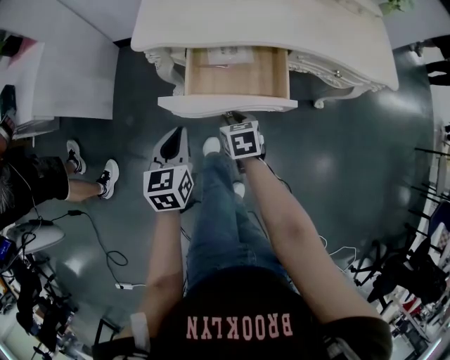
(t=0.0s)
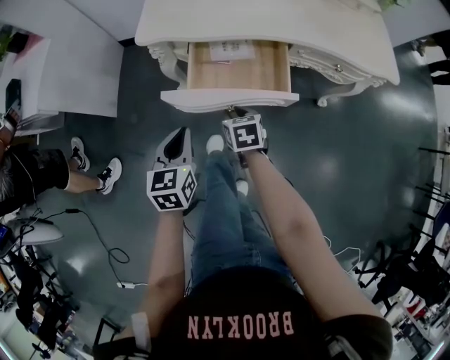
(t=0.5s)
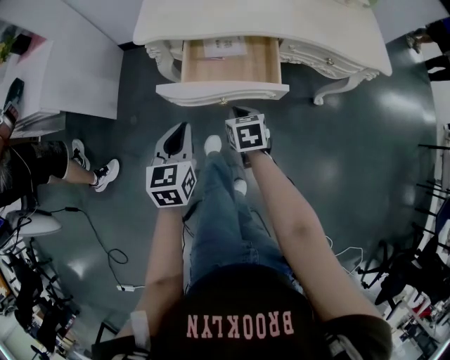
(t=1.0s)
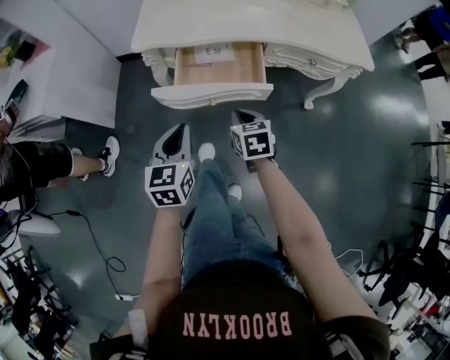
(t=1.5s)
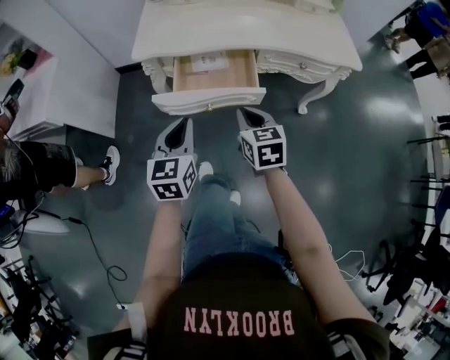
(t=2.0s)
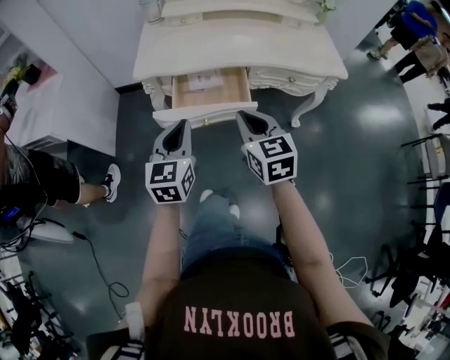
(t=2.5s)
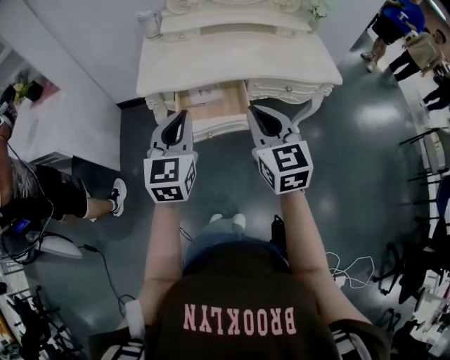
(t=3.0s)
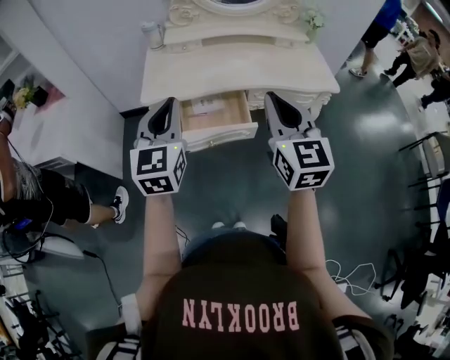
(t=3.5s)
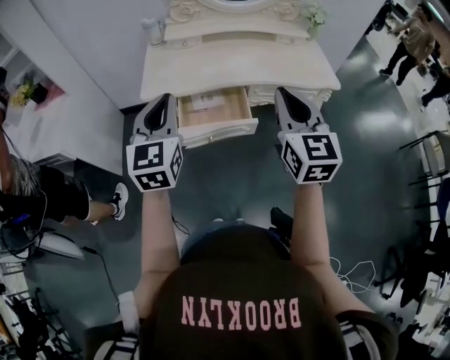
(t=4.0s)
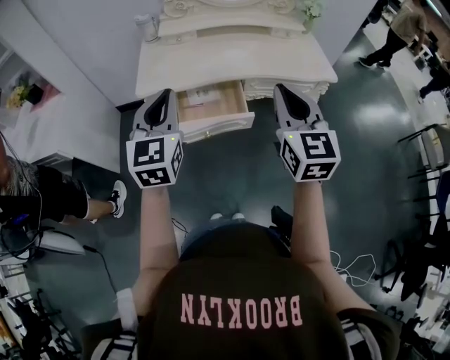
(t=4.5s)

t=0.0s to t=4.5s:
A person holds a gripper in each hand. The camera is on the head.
t=0.0s to t=2.0s: Both grippers move upward, backward and to the right, approximately 20 cm. The right gripper rotates approximately 20 degrees, and closes its fingers.
t=2.0s to t=4.5s: Both grippers move upward, roughly 25 cm. The right gripper swivels roughly 30 degrees. Meanwhile the left gripper turns by roughly 20 degrees.

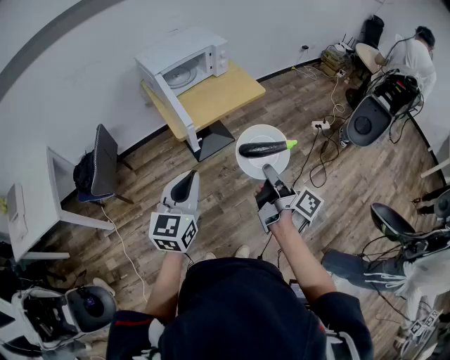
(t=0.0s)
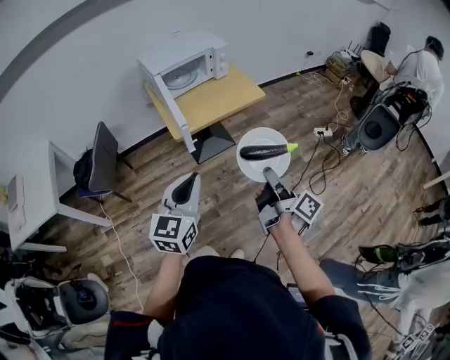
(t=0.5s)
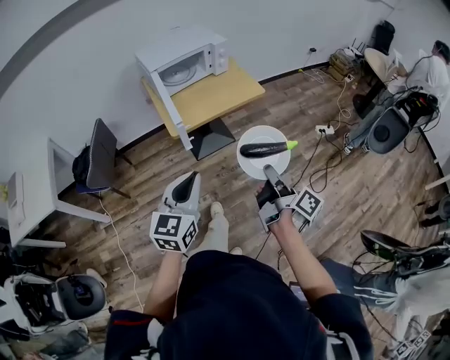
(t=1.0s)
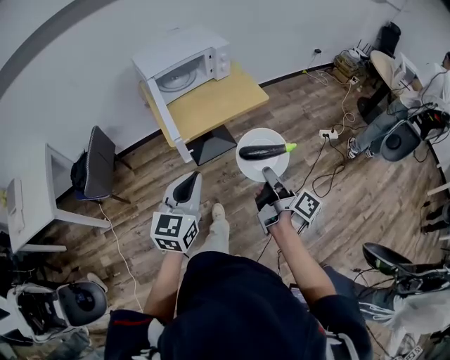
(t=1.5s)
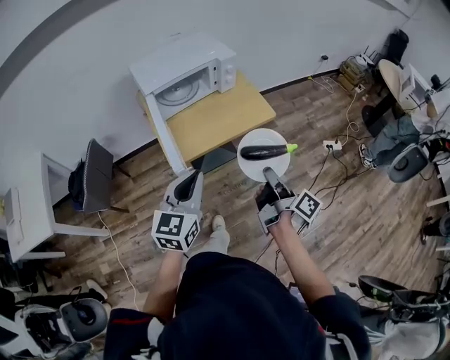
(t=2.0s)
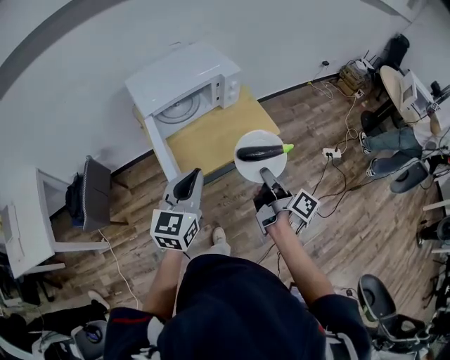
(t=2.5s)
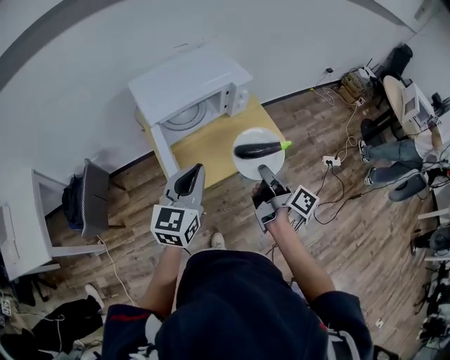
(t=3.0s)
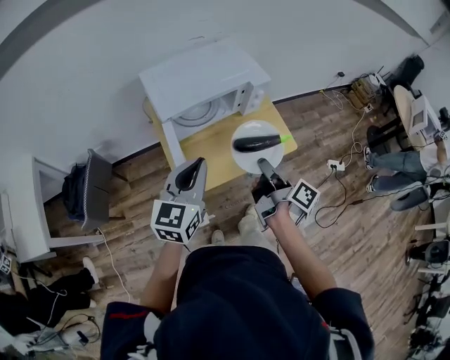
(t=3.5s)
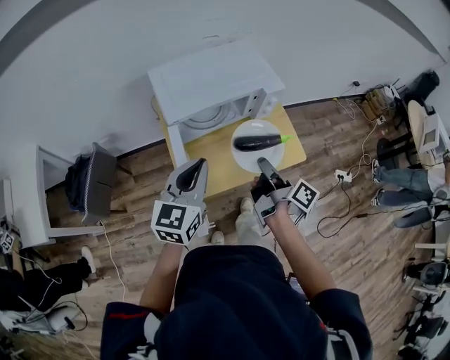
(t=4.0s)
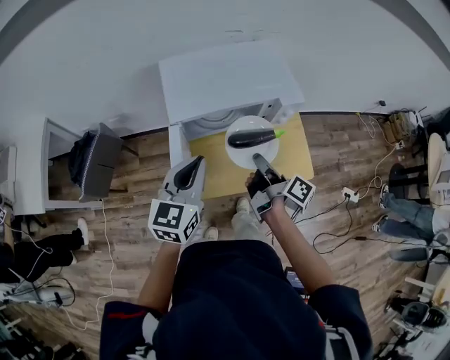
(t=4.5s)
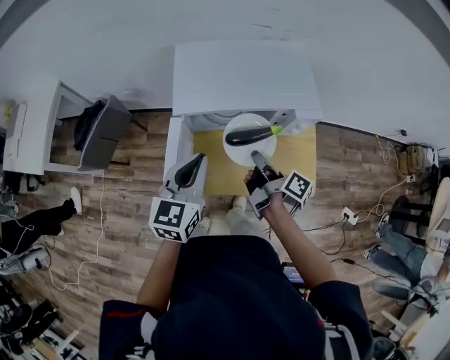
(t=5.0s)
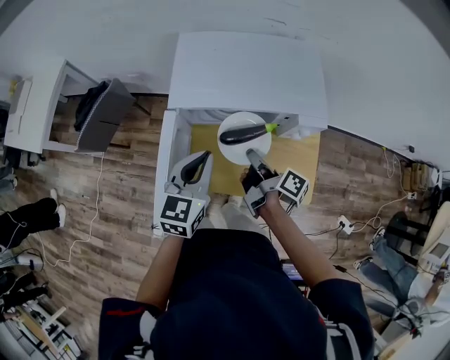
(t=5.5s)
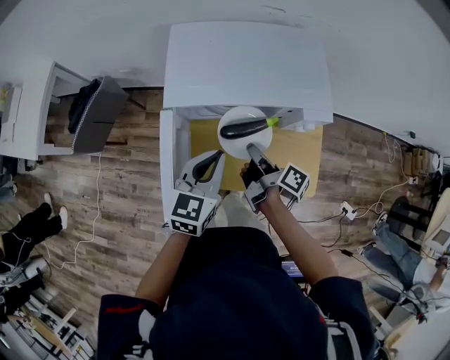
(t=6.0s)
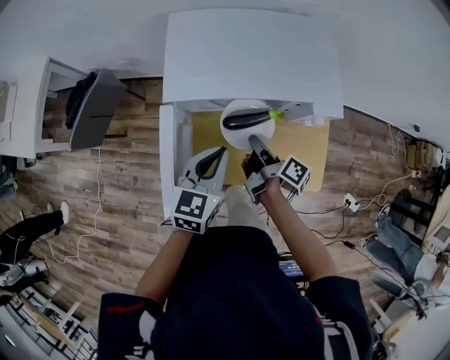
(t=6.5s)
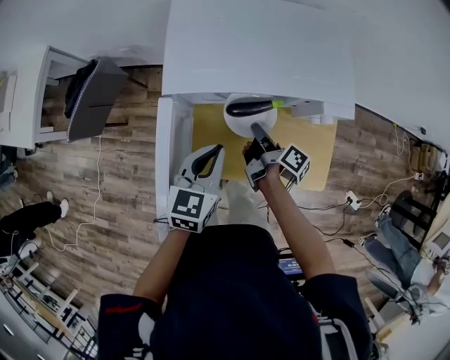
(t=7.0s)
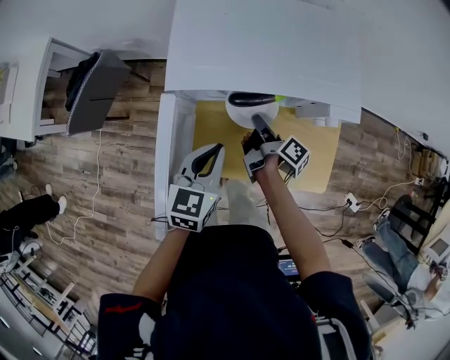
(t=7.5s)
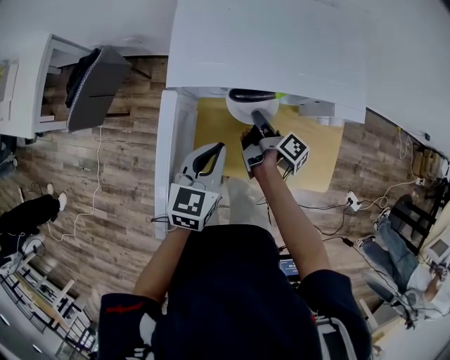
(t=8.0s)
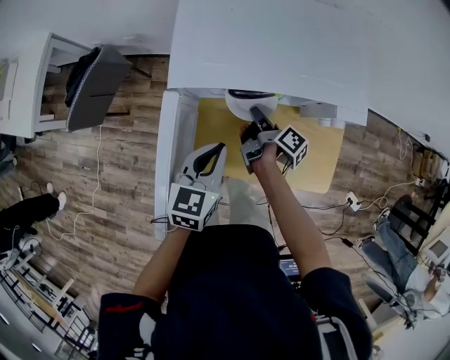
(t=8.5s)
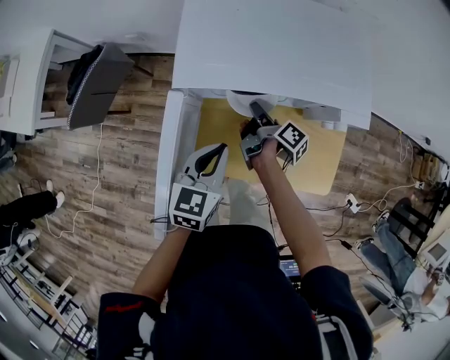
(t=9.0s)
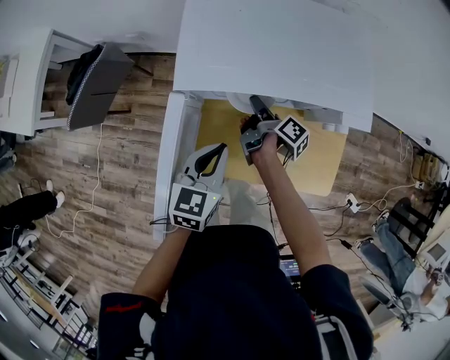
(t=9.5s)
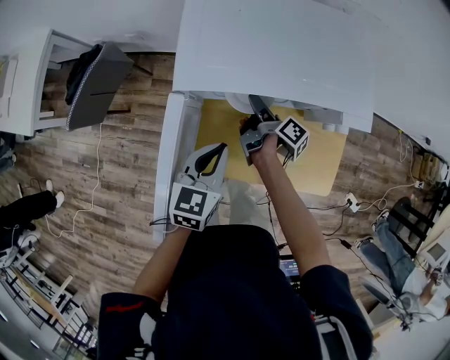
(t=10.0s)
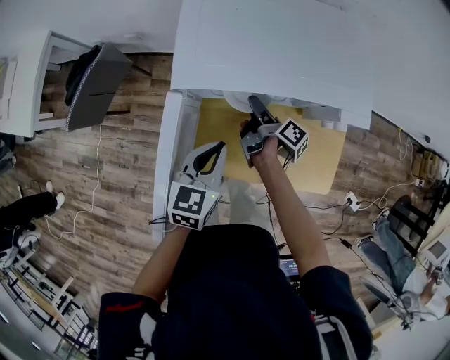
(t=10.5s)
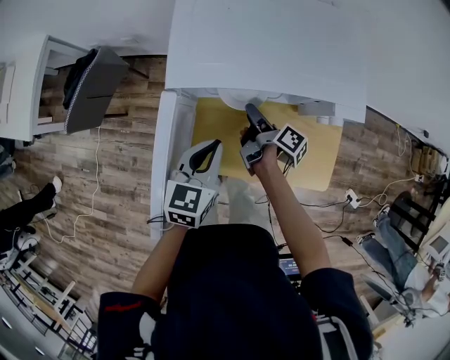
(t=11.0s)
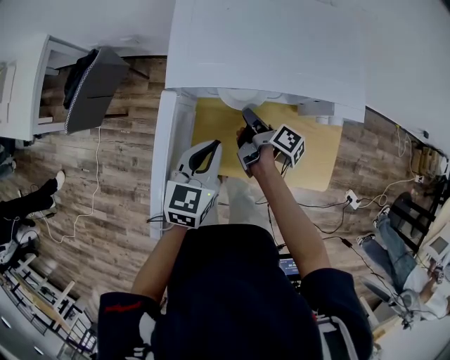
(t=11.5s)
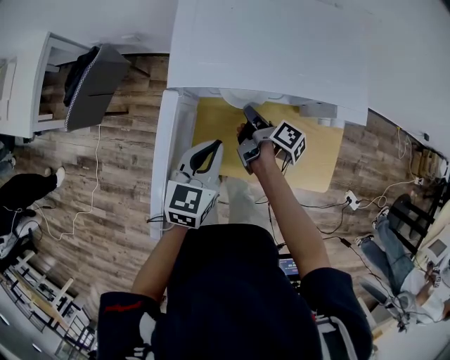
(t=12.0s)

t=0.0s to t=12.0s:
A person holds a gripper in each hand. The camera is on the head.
t=0.0s to t=2.0s: The left gripper shifts by about 20 cm.
t=2.0s to t=4.0s: The left gripper changes place by about 25 cm.
t=4.0s to t=6.0s: The left gripper moves some 15 cm, and changes its angle by some 20 degrees.
t=6.0s to t=8.0s: The left gripper shifts roughly 5 cm downward.

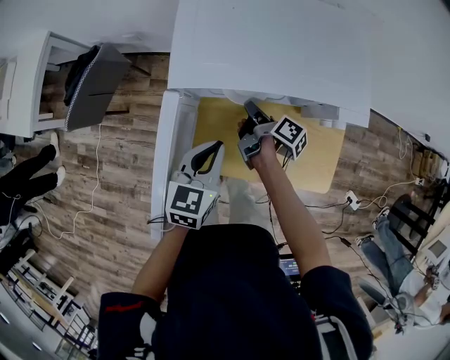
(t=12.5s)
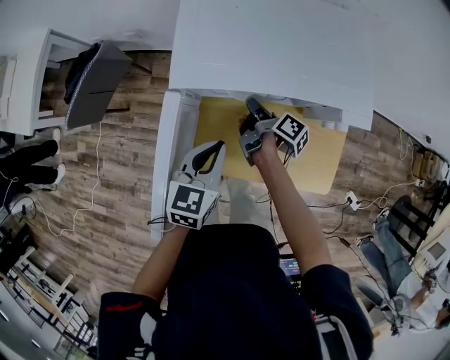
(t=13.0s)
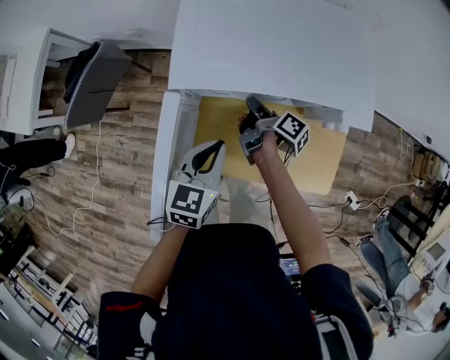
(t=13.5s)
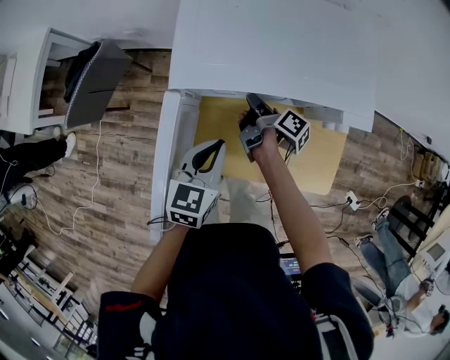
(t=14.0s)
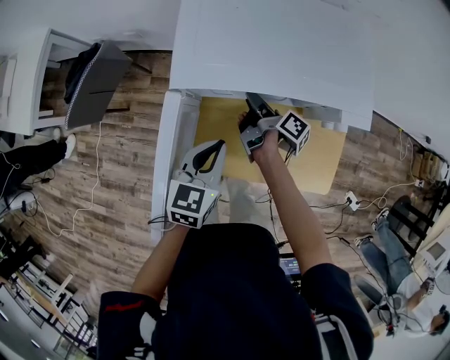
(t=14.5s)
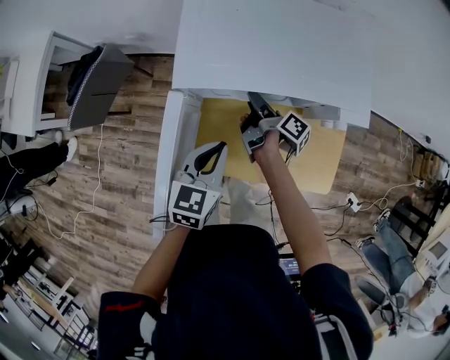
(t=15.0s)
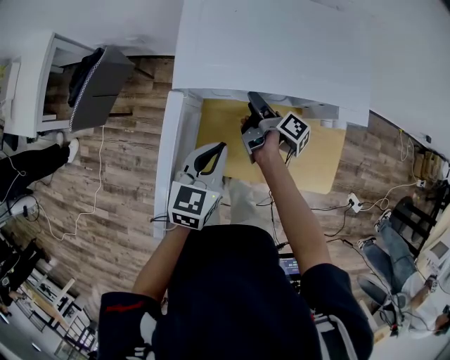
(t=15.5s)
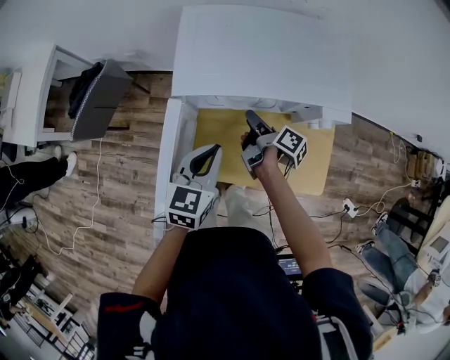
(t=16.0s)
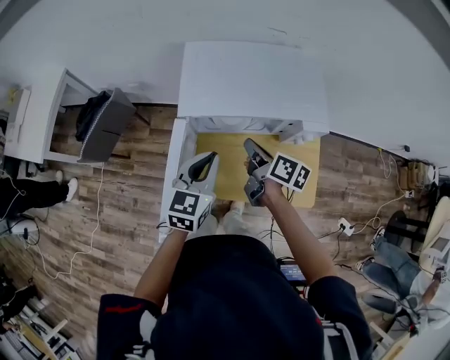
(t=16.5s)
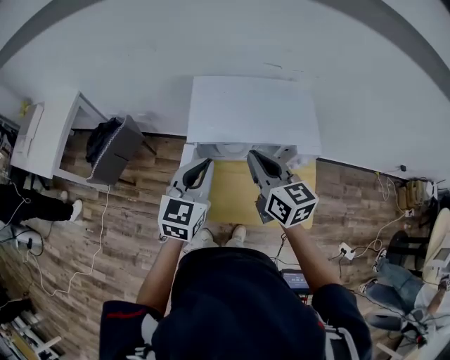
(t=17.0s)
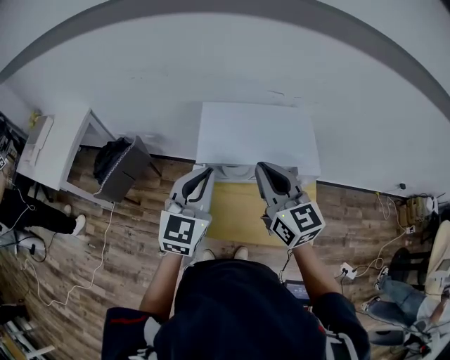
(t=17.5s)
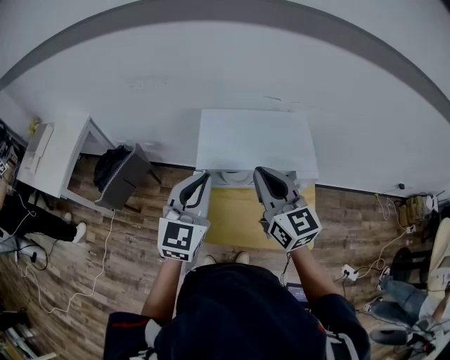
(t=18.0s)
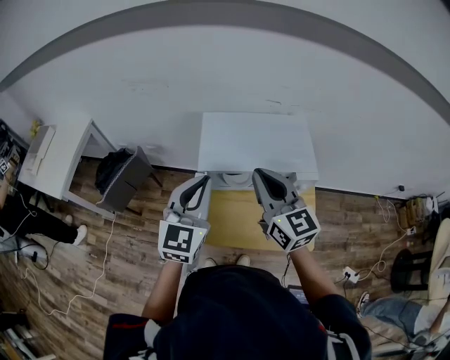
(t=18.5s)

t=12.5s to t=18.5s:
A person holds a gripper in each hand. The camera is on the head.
t=14.5s to t=16.5s: The left gripper heads upward, covering about 10 cm.
t=16.5s to t=18.5s: The left gripper is displaced upward by some 15 cm, and rotates approximately 20 degrees.

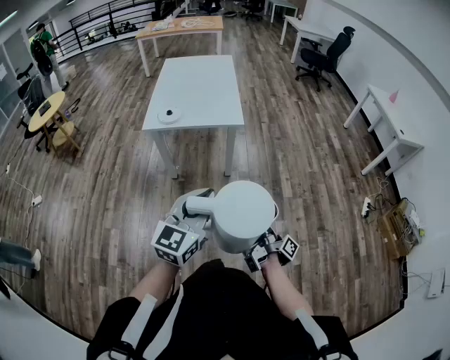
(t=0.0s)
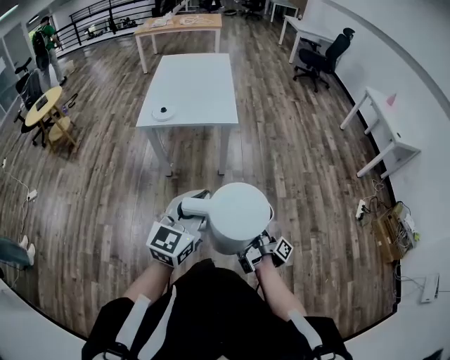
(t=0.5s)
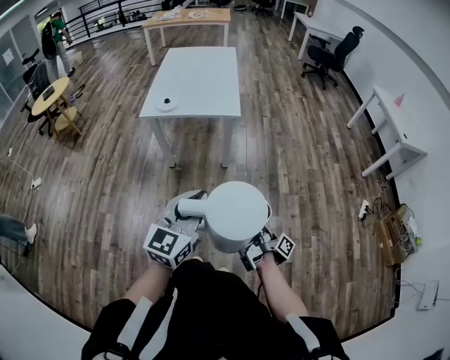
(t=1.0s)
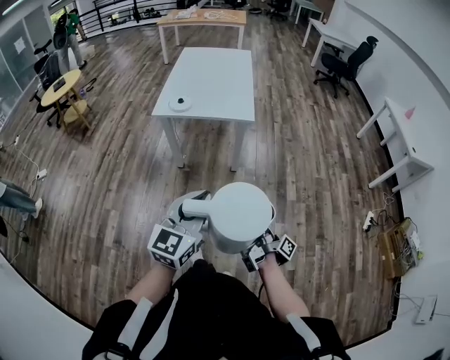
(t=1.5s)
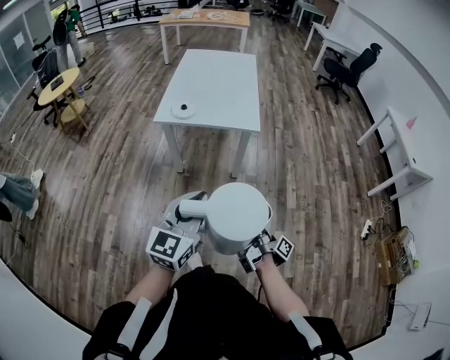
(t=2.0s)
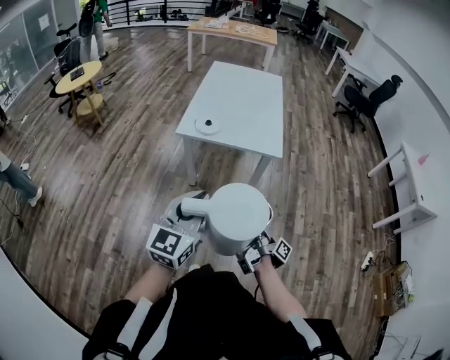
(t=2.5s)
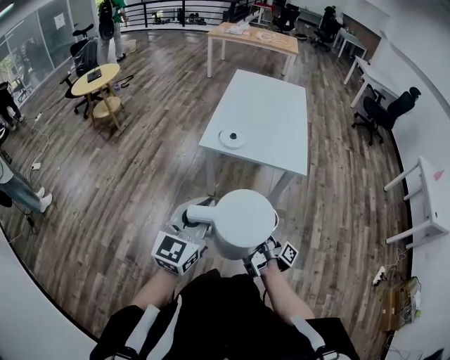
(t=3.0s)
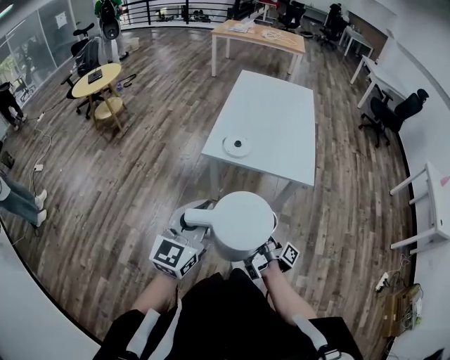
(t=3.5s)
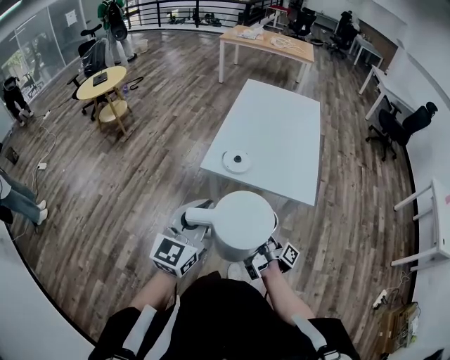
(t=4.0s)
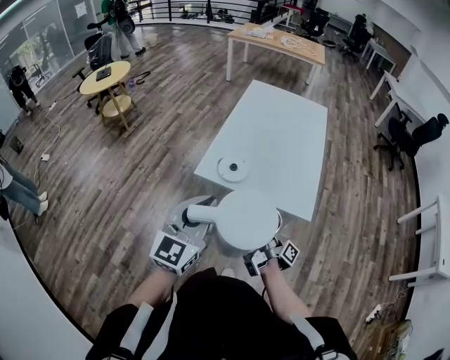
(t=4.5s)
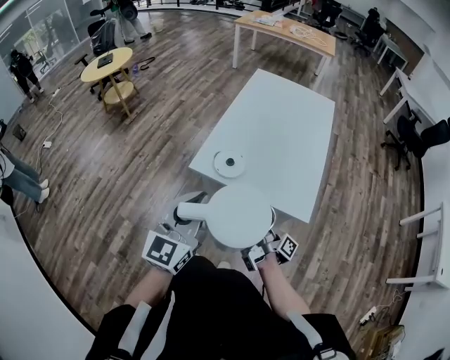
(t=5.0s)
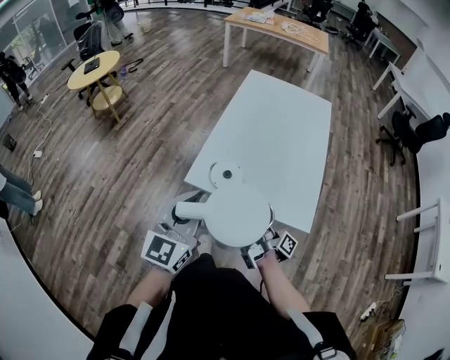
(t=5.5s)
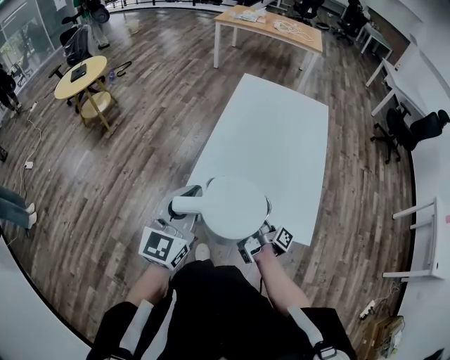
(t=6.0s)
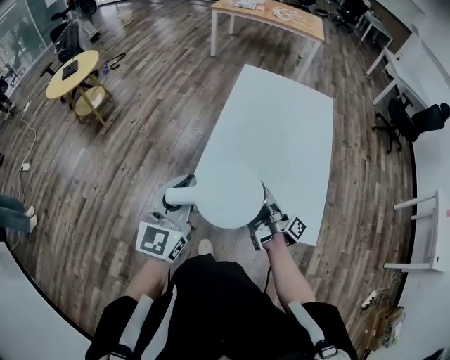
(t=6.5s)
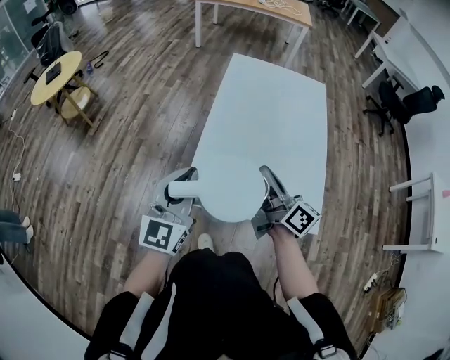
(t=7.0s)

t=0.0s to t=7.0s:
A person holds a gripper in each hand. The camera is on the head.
t=0.0s to t=2.0s: The left gripper shifts by roughly 5 cm.
t=2.0s to t=3.5s: The left gripper moves about 25 cm.
t=3.5s to t=5.0s: The left gripper changes place by approximately 15 cm.
t=5.0s to t=7.0s: The left gripper moves some 25 cm.
